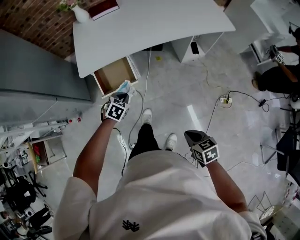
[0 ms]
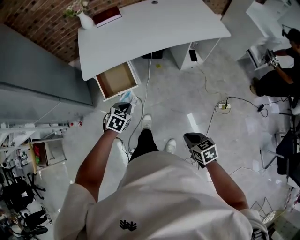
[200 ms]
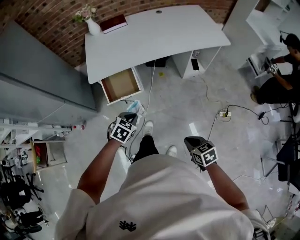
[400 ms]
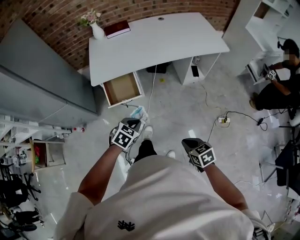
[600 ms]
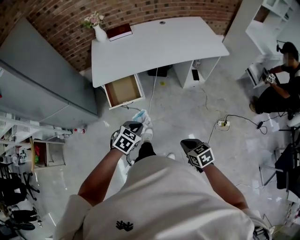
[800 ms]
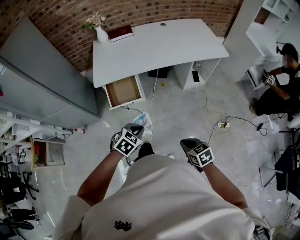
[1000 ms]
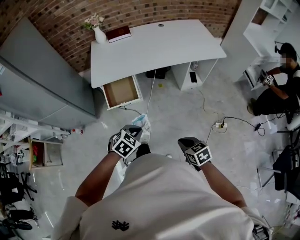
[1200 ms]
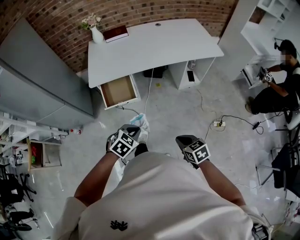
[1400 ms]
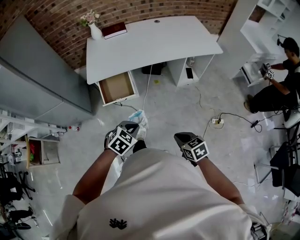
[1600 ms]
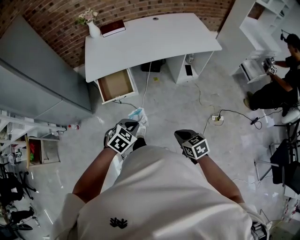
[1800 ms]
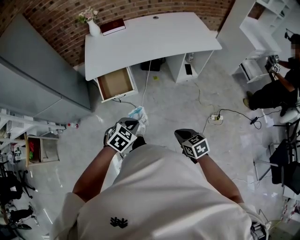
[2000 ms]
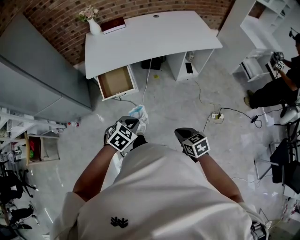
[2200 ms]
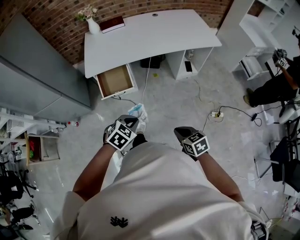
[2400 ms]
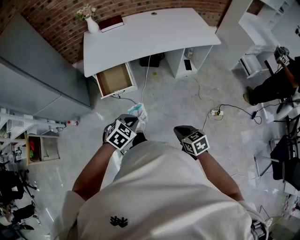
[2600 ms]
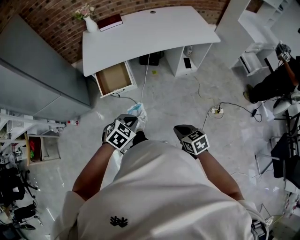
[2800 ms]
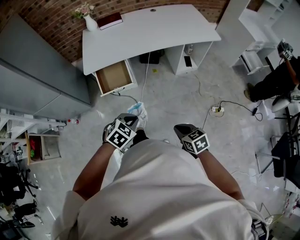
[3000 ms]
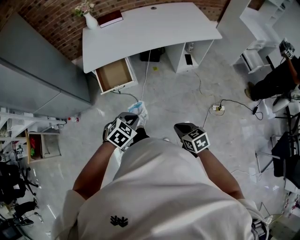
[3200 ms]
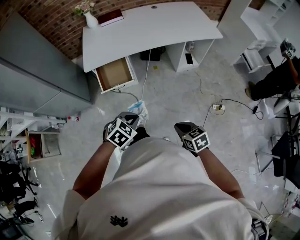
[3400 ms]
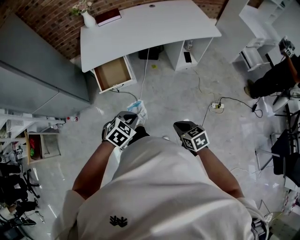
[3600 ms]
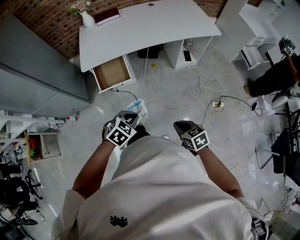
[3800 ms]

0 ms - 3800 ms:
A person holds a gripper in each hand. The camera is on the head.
0 ms - 1200 ms: The right gripper is displaced upward and backward by some 10 cm; the left gripper shifts approximately 25 cm backward and upward.
1200 ms - 3800 ms: The grippers stay close to where they were, moving slightly.

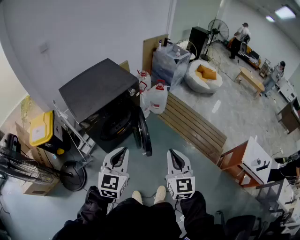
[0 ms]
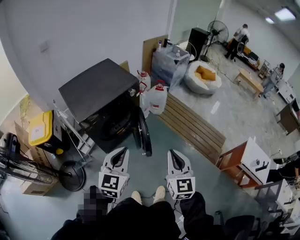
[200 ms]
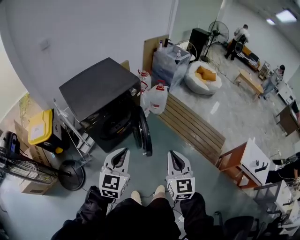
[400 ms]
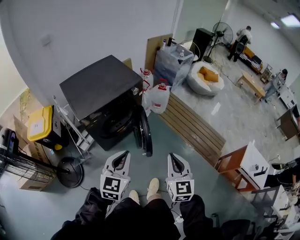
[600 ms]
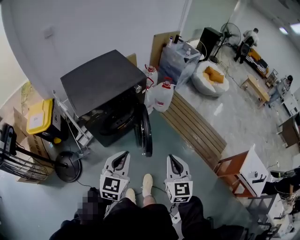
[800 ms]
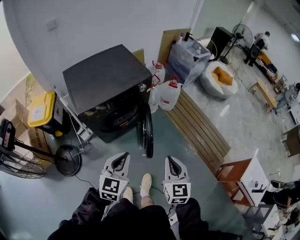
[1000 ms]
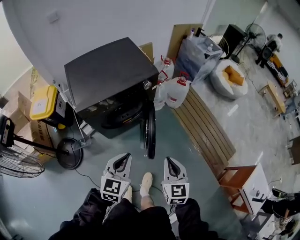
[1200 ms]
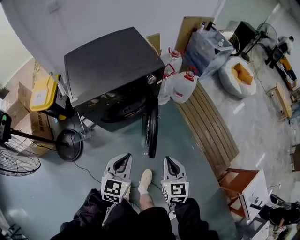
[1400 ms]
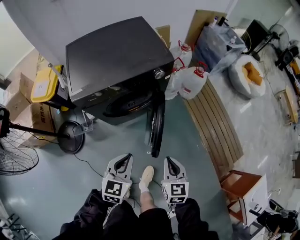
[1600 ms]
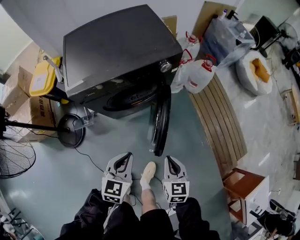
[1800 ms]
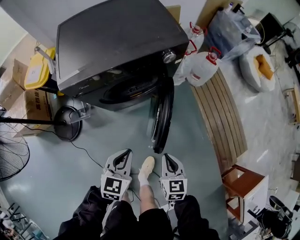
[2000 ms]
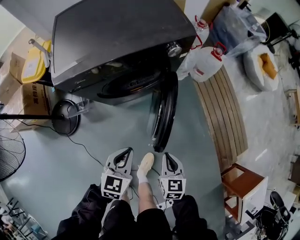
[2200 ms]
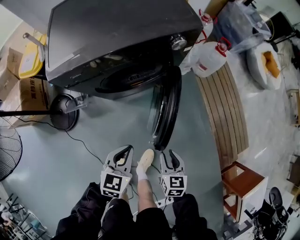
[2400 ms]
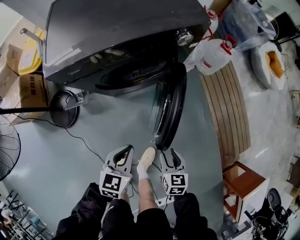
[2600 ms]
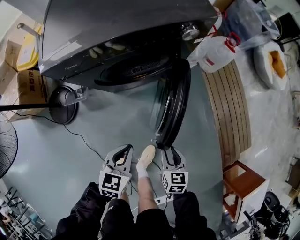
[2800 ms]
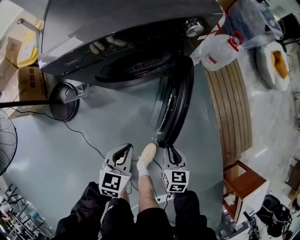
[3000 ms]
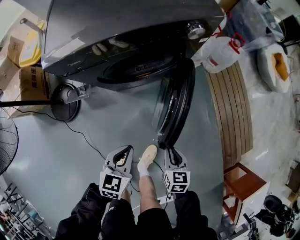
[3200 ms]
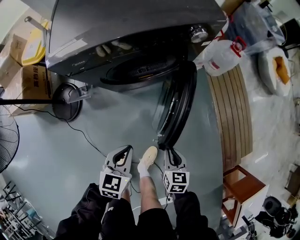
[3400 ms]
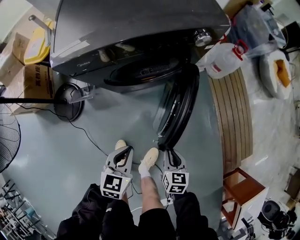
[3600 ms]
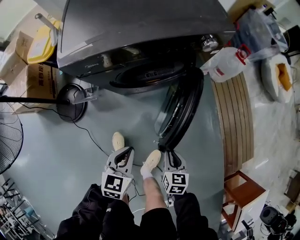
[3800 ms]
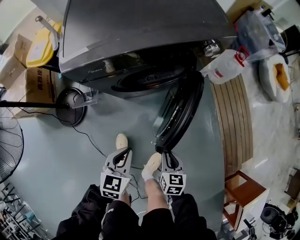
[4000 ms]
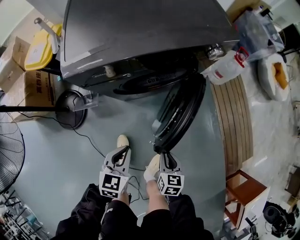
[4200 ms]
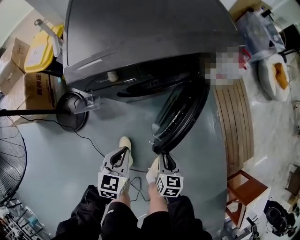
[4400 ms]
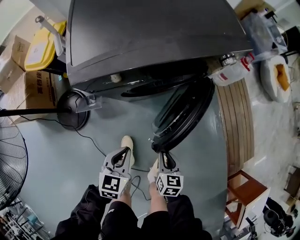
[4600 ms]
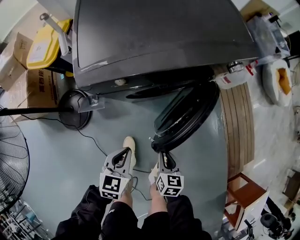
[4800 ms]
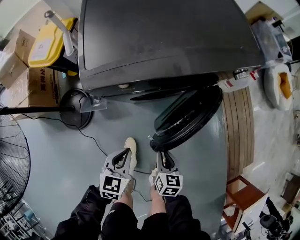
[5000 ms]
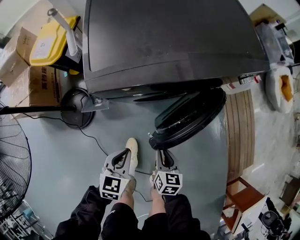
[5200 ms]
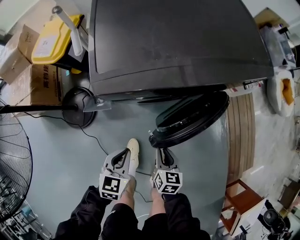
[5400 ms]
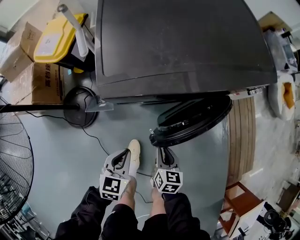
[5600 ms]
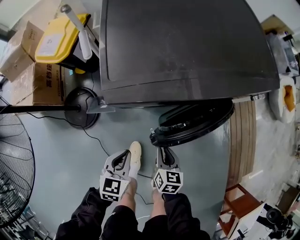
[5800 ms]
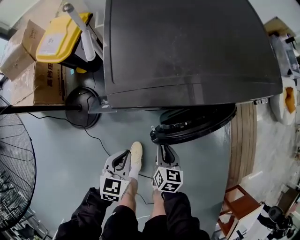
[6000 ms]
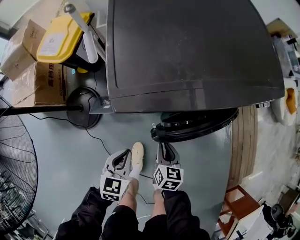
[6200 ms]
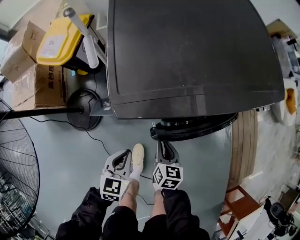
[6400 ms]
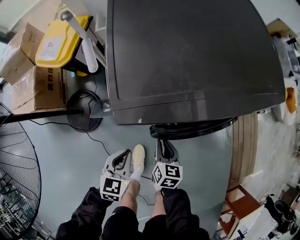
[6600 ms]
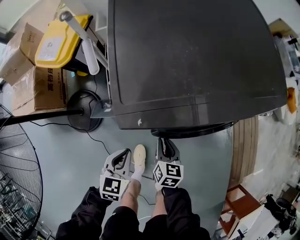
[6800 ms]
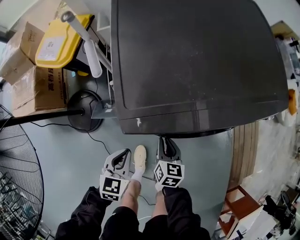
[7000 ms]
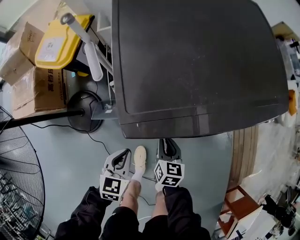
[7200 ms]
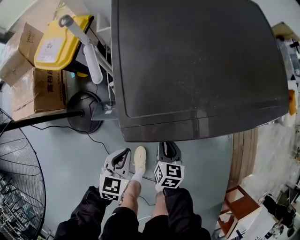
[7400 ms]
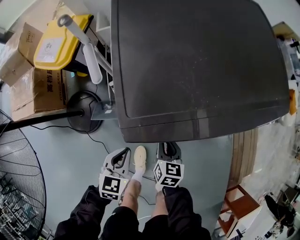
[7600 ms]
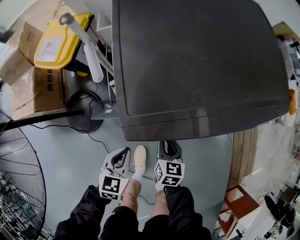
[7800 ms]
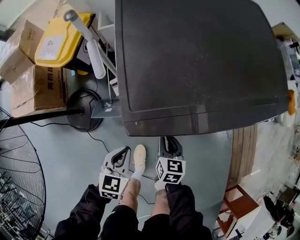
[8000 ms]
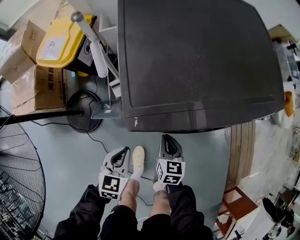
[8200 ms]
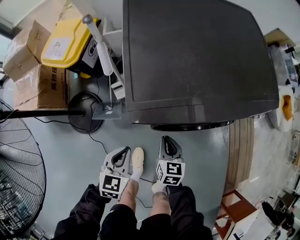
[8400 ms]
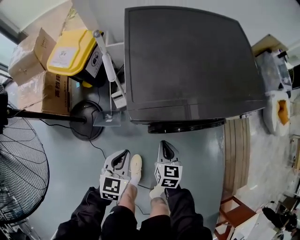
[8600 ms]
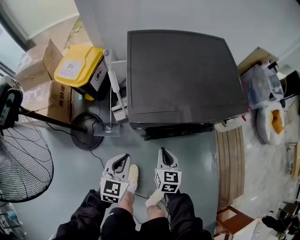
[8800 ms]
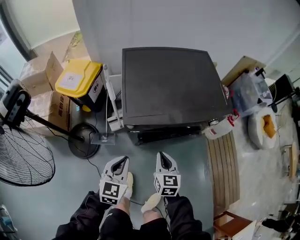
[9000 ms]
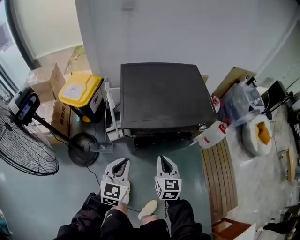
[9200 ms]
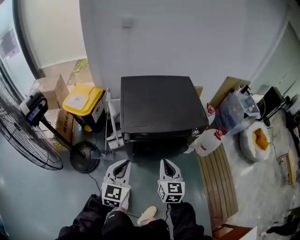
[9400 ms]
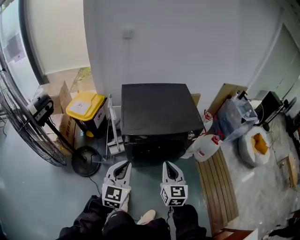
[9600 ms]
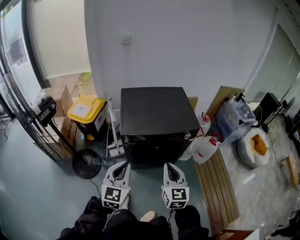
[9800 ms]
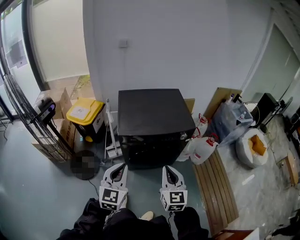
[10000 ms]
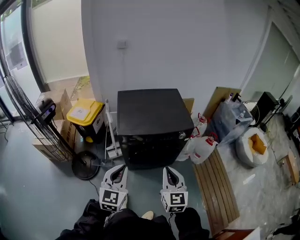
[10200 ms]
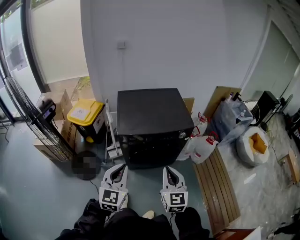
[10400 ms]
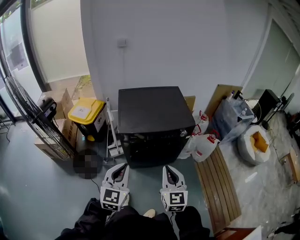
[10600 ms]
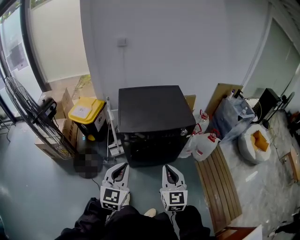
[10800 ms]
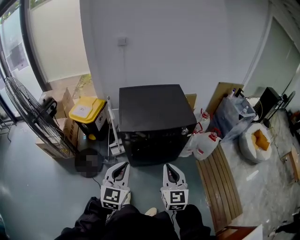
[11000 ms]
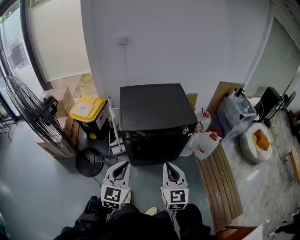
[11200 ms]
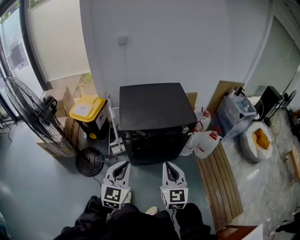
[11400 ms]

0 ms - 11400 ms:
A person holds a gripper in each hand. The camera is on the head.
0 ms - 1400 ms: Both grippers travel together downward and forward, some 25 cm. The right gripper swivels some 20 degrees, while the left gripper rotates about 20 degrees.
1400 ms - 2800 ms: The grippers both shift downward by some 30 cm. The right gripper swivels some 20 degrees, and opens up.
2800 ms - 4200 ms: Both grippers move to the left, about 10 cm.
4200 ms - 5600 ms: The right gripper shifts approximately 20 cm to the left and forward. Meanwhile the left gripper is displaced to the left by approximately 15 cm.
5600 ms - 7200 ms: The grippers both shift forward and to the left by some 15 cm.
7200 ms - 8600 ms: The two grippers go some 10 cm upward.
8600 ms - 10000 ms: The grippers both shift upward, backward and to the right by some 50 cm. The right gripper turns by approximately 30 degrees; the left gripper turns by about 30 degrees.
10000 ms - 11400 ms: There are only small adjustments of the grippers.

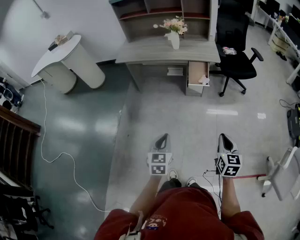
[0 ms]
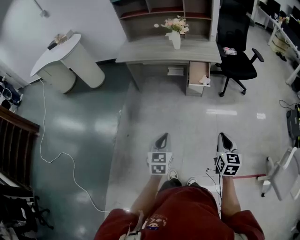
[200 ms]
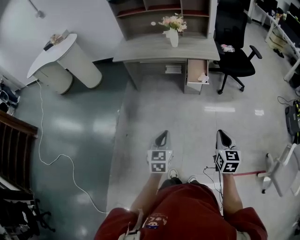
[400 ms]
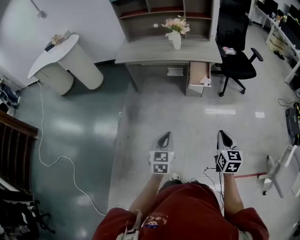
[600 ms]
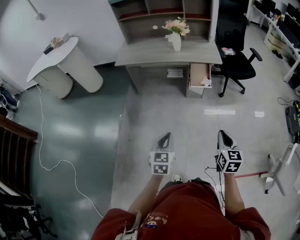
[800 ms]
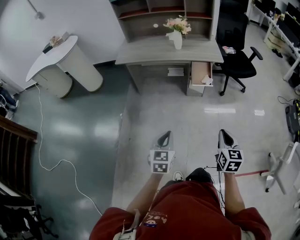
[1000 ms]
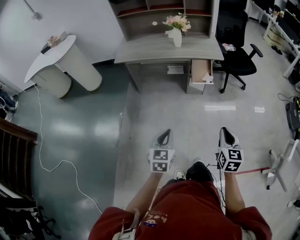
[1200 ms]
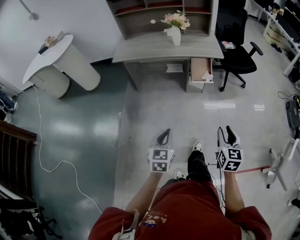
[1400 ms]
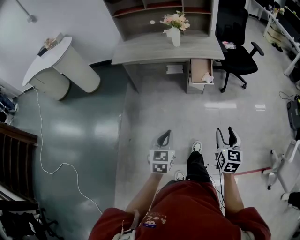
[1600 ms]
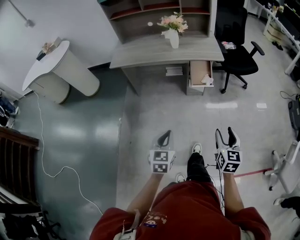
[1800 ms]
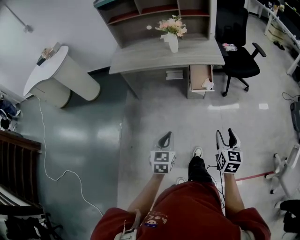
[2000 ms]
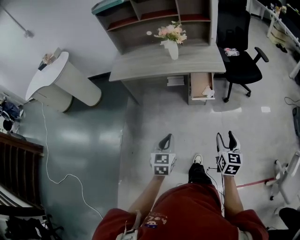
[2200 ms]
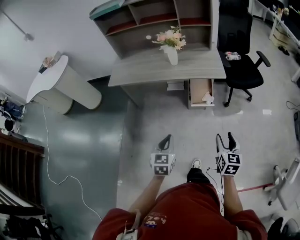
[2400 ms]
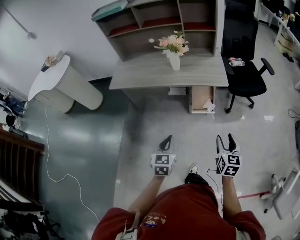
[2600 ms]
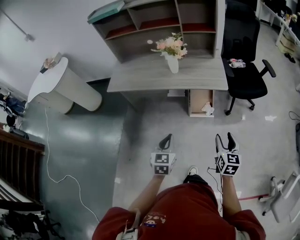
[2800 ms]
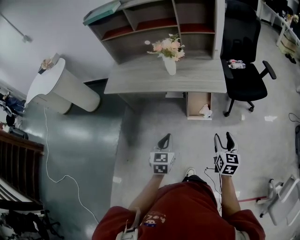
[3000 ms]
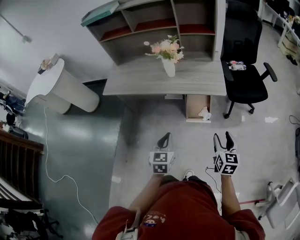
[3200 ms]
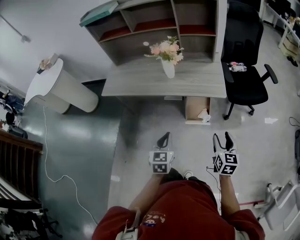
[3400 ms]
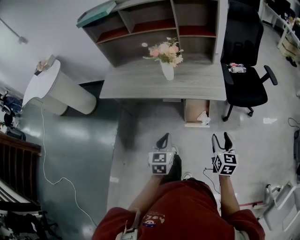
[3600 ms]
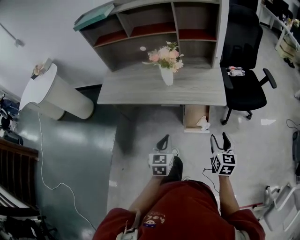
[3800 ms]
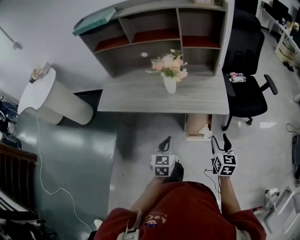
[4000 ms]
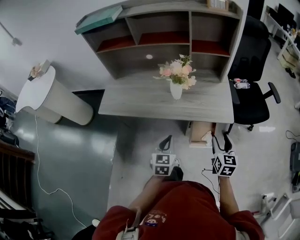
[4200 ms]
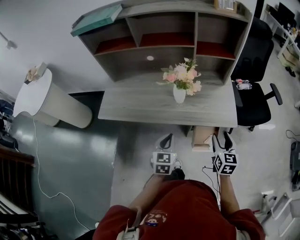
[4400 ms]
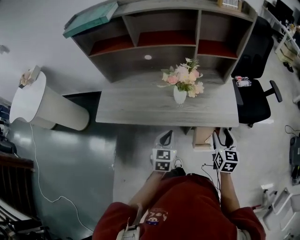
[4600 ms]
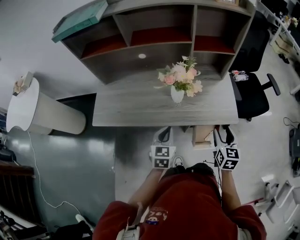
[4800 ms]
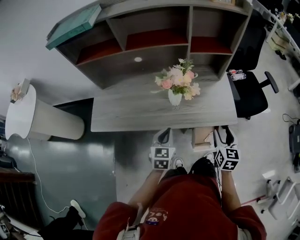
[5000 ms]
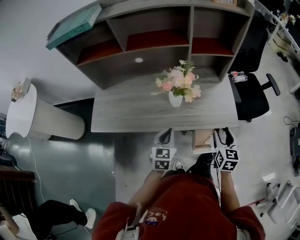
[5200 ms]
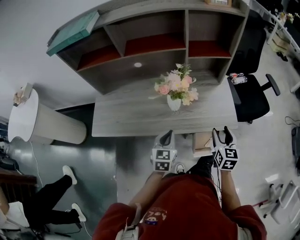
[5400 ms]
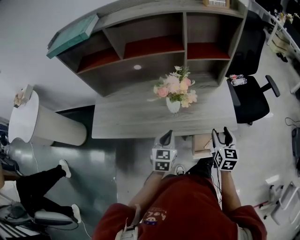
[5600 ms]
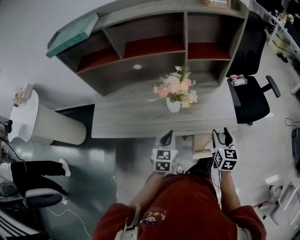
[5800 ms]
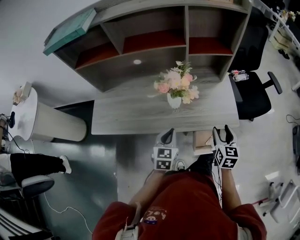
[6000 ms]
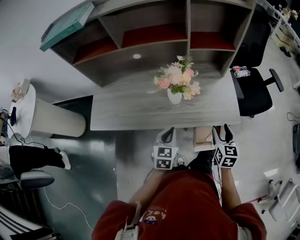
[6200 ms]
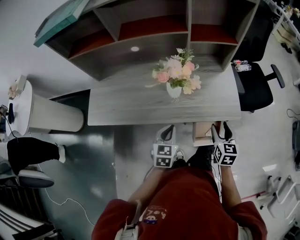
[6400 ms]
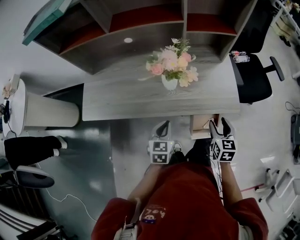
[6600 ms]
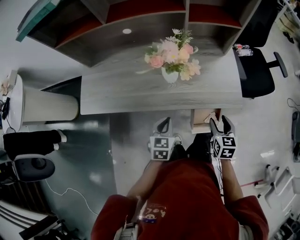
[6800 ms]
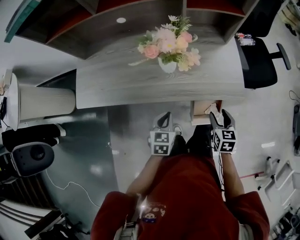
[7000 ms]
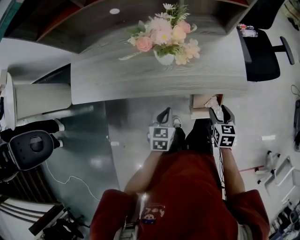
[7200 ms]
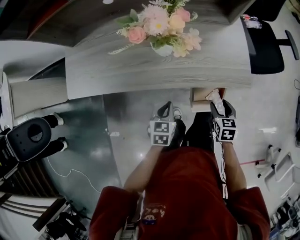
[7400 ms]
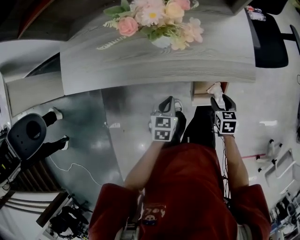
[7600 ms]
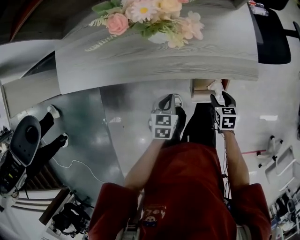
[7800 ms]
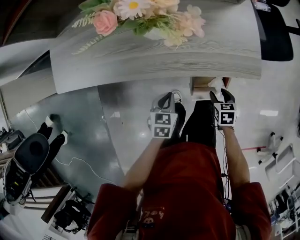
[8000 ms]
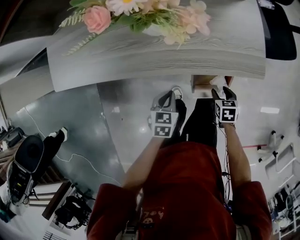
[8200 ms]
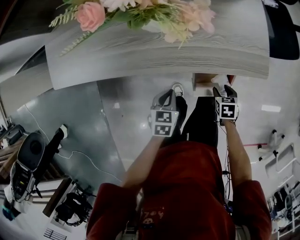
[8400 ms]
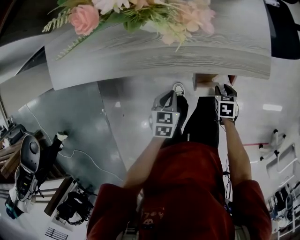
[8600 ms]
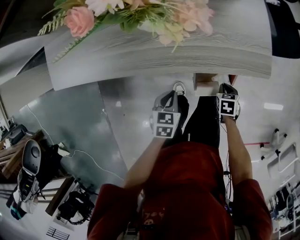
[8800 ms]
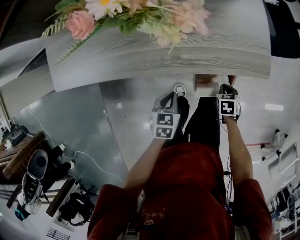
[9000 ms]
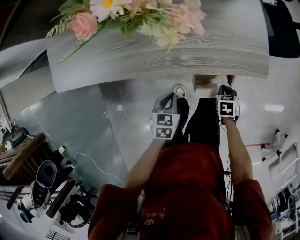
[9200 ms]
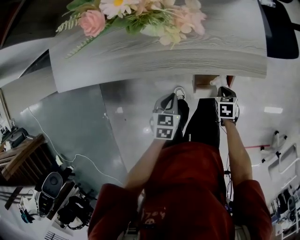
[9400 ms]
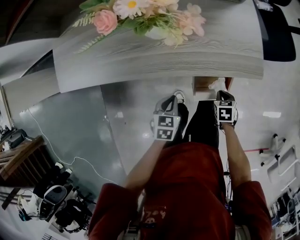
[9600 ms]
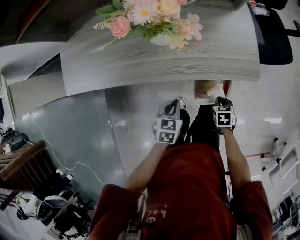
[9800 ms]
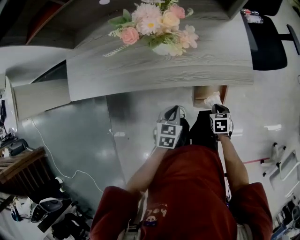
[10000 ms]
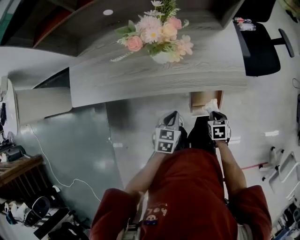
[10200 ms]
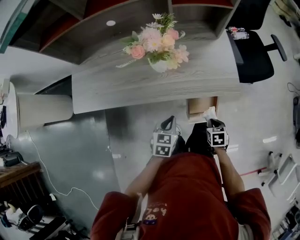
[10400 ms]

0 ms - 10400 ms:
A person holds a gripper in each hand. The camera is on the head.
0 ms - 1400 ms: The left gripper travels to the left and forward by about 10 cm. The right gripper goes approximately 10 cm to the left, and opens.
1400 ms - 3000 ms: Both grippers travel together forward, some 35 cm. The right gripper opens its fingers.
3000 ms - 4400 ms: The grippers both shift forward by about 25 cm.
4400 ms - 6000 ms: The two grippers go about 10 cm forward.
6000 ms - 7400 ms: Both grippers move downward, roughly 20 cm. The right gripper rotates approximately 30 degrees.
7400 ms - 9000 ms: The left gripper travels downward by roughly 10 cm. Meanwhile the right gripper goes some 15 cm downward, turns by some 20 degrees, and closes its fingers.
9000 ms - 10400 ms: Both grippers move upward, roughly 15 cm.
